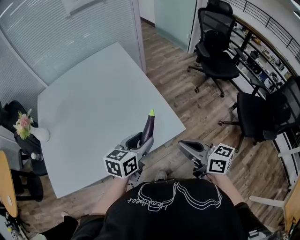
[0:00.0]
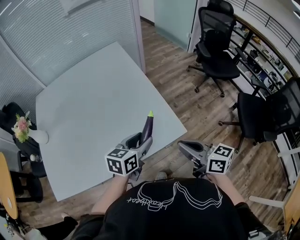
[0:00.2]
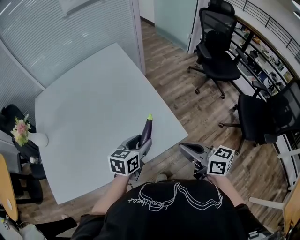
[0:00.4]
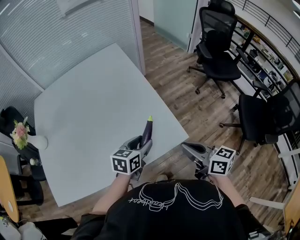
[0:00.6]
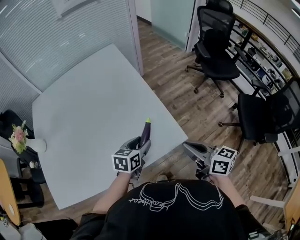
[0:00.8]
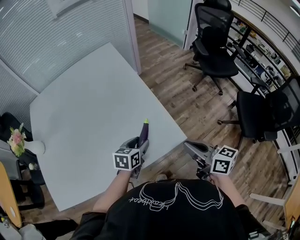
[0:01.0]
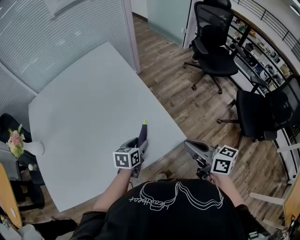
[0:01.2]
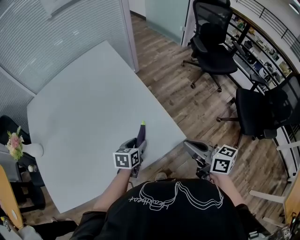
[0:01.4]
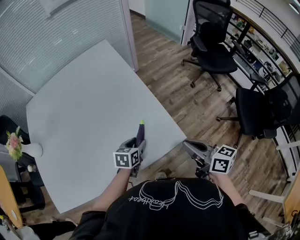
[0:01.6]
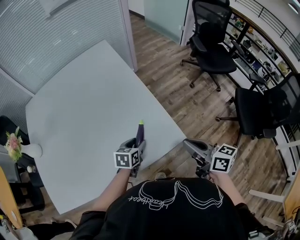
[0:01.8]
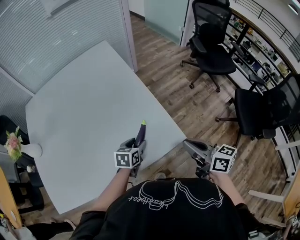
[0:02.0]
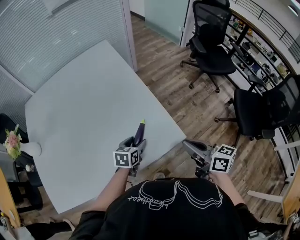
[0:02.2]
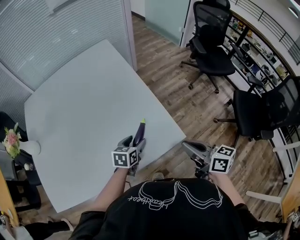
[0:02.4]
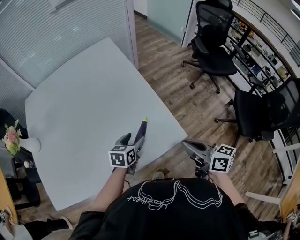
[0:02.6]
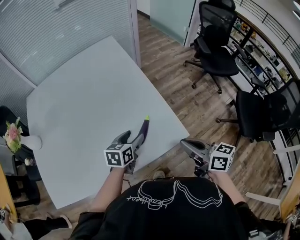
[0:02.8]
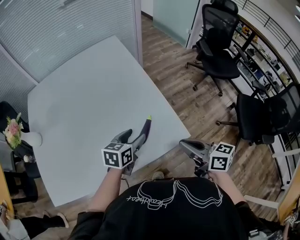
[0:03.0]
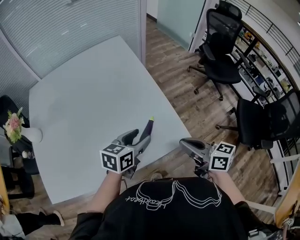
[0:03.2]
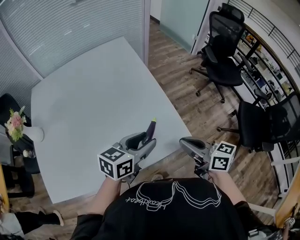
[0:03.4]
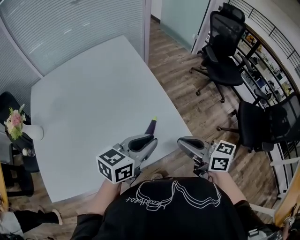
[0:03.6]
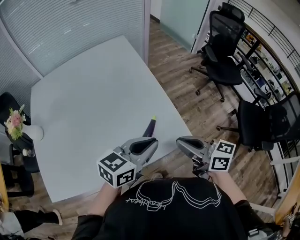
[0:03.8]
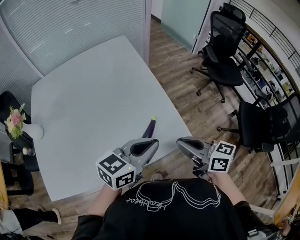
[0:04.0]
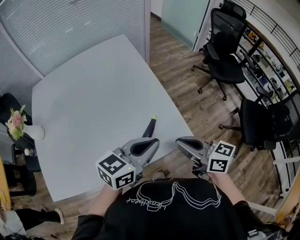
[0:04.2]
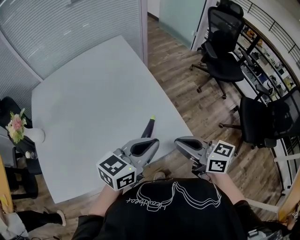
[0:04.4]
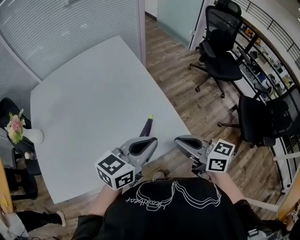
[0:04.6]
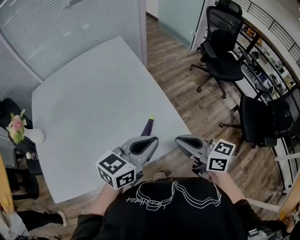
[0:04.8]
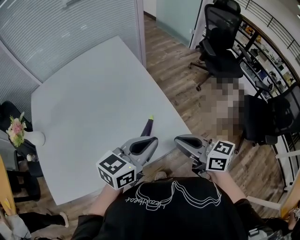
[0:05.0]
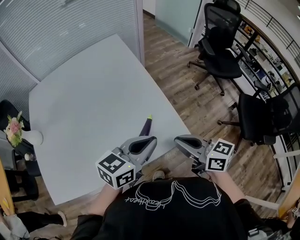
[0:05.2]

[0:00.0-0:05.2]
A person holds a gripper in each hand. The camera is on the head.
0:00.0 to 0:01.8: The left gripper shifts about 20 cm downward and forward, and changes its angle by roughly 20 degrees. Meanwhile the right gripper heads forward, covering roughly 10 cm.
0:01.8 to 0:03.4: The right gripper heads to the left, covering roughly 10 cm, while the left gripper heads upward, covering roughly 20 cm, and rotates approximately 30 degrees.
0:03.4 to 0:05.2: The left gripper changes place by approximately 5 cm, and closes its fingers.

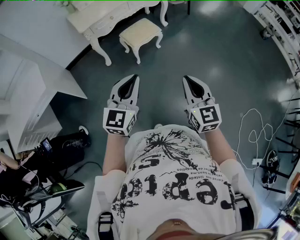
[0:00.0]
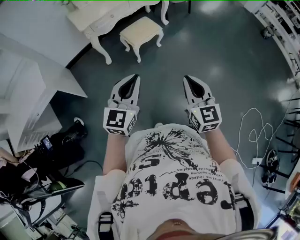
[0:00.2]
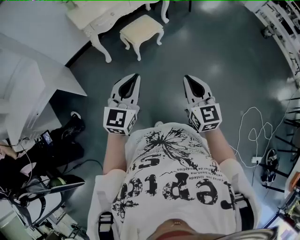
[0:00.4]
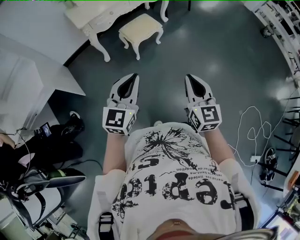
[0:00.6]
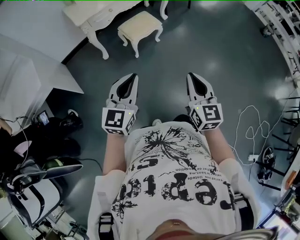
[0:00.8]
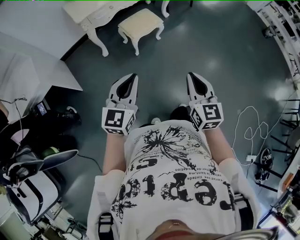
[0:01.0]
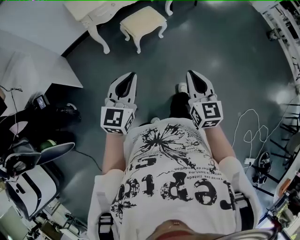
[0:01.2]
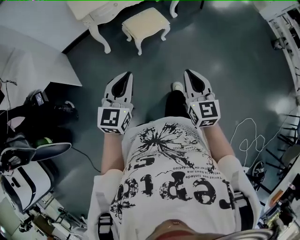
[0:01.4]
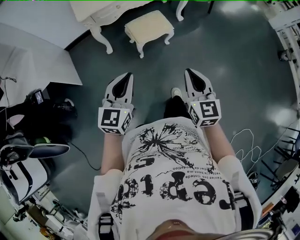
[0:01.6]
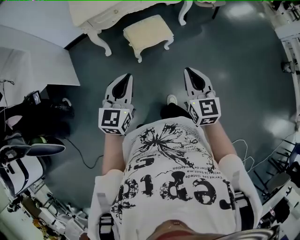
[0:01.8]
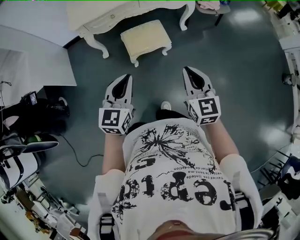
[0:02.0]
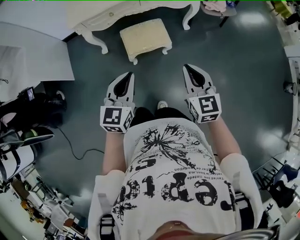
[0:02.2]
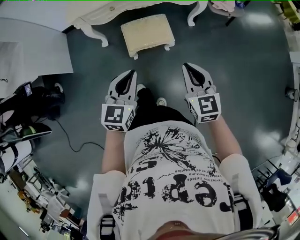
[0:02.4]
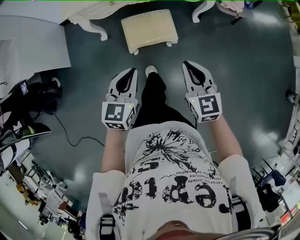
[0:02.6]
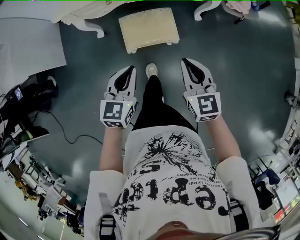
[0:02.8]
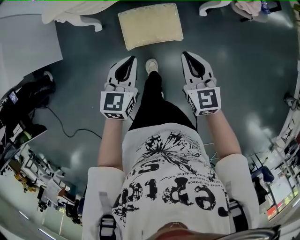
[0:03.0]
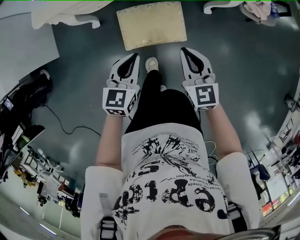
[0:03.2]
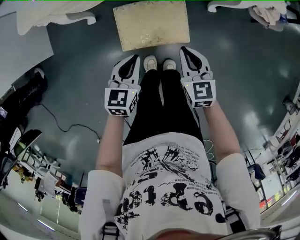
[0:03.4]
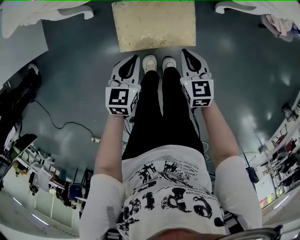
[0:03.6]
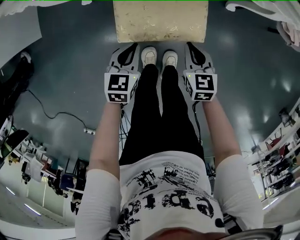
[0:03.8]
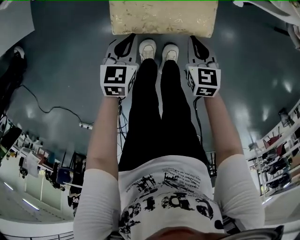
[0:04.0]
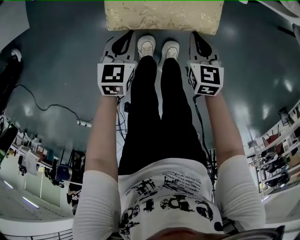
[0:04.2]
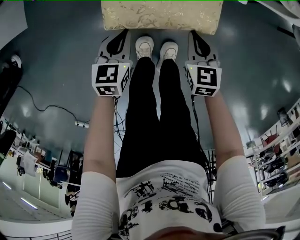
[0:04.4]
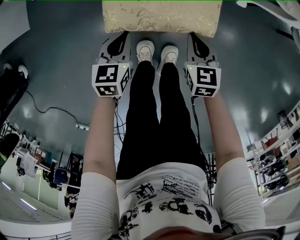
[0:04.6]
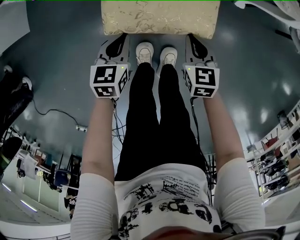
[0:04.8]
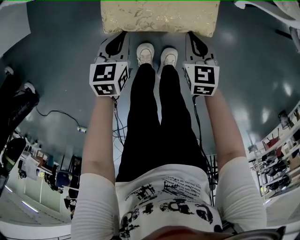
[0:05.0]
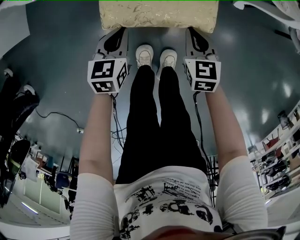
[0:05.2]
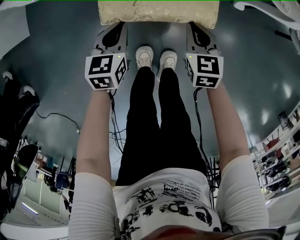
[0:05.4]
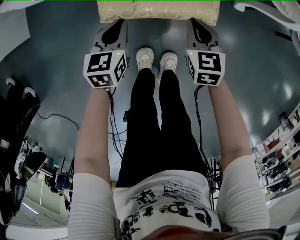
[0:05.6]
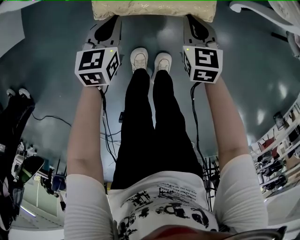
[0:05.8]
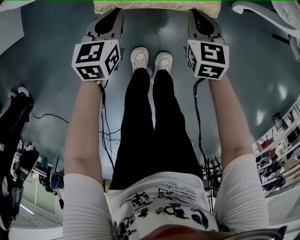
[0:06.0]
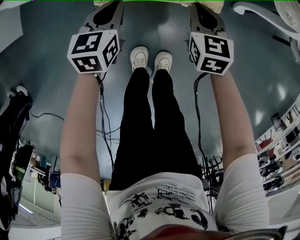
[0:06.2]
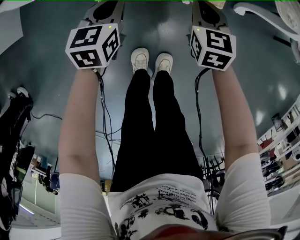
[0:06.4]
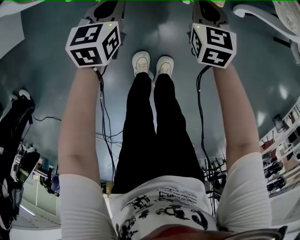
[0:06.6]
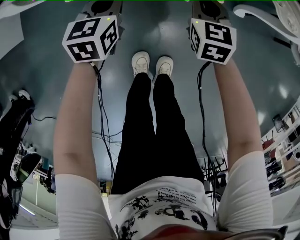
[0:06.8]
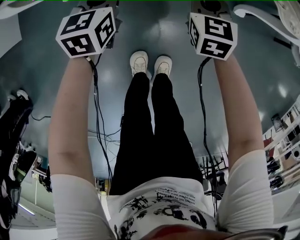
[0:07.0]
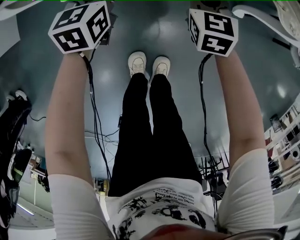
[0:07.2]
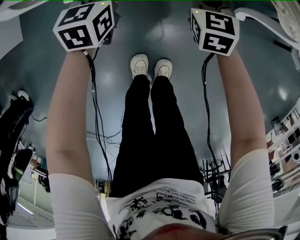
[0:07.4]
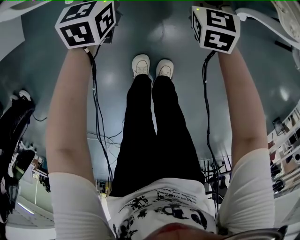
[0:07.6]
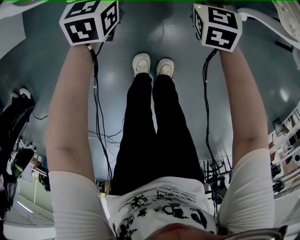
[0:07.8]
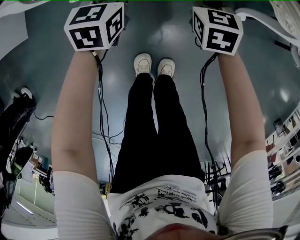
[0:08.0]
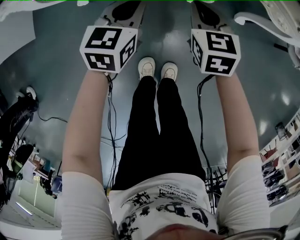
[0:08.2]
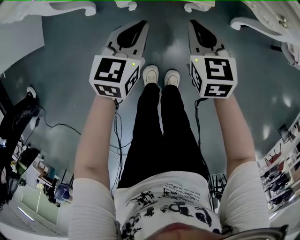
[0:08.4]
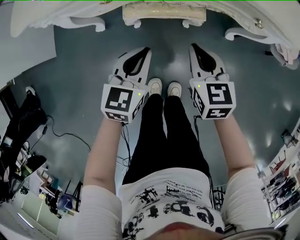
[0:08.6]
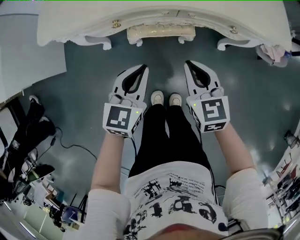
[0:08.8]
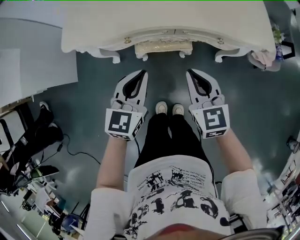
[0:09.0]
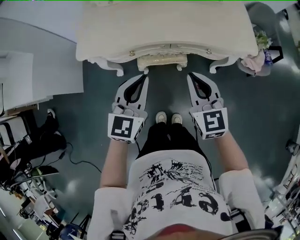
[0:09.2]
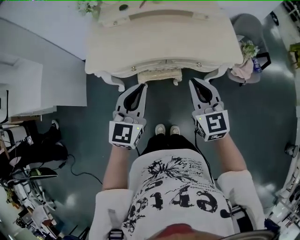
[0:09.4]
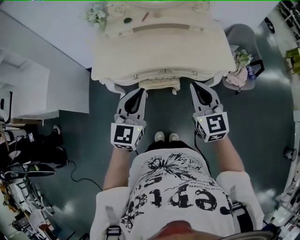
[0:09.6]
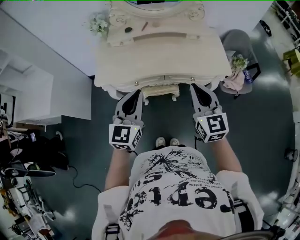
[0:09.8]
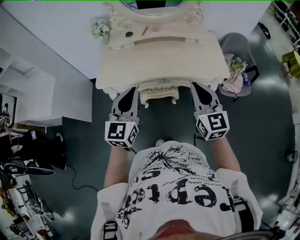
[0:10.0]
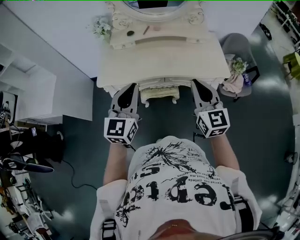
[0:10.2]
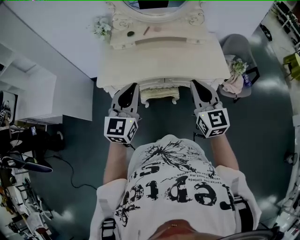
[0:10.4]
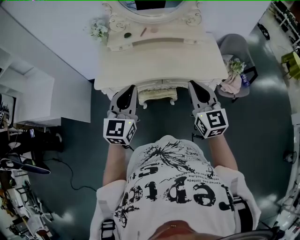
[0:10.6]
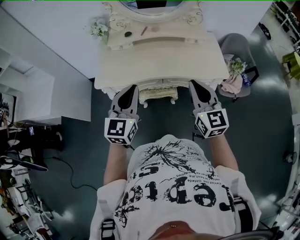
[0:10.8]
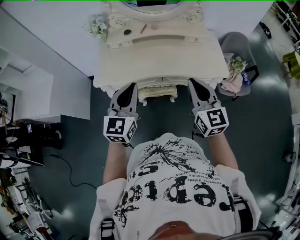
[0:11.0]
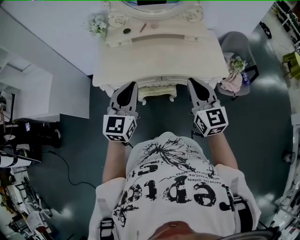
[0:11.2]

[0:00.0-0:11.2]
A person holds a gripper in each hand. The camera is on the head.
0:00.0 to 0:01.6: The left gripper travels forward and downward by some 15 cm, while the right gripper moves forward, about 20 cm.
0:01.6 to 0:03.2: The two grippers travel together, forward, some 50 cm. The two grippers go about 30 cm downward. The right gripper turns by some 30 degrees. The left gripper turns by some 30 degrees.
0:03.2 to 0:04.8: The two grippers go about 30 cm downward. The left gripper rotates approximately 20 degrees.
0:04.8 to 0:06.4: The two grippers go approximately 15 cm forward.
0:06.4 to 0:08.0: The two grippers go some 5 cm forward.
0:08.0 to 0:09.6: The grippers both shift upward by some 60 cm. The right gripper angles its fingers upward, by about 30 degrees; the left gripper turns by roughly 30 degrees.
0:09.6 to 0:11.2: Both grippers travel together upward, some 5 cm.

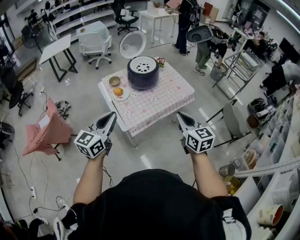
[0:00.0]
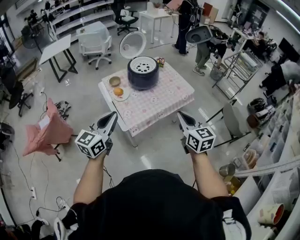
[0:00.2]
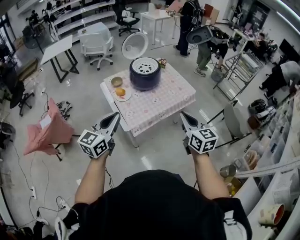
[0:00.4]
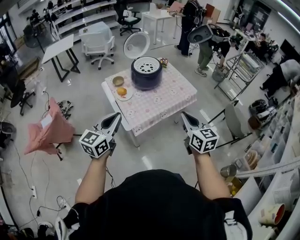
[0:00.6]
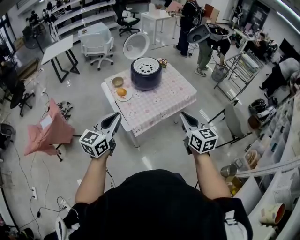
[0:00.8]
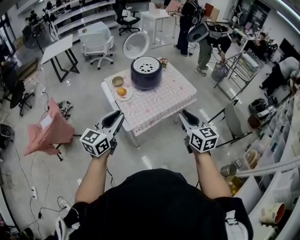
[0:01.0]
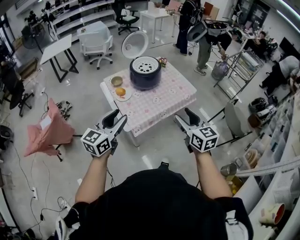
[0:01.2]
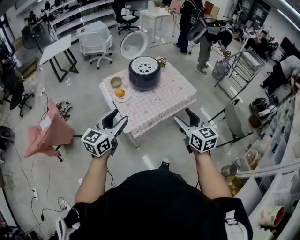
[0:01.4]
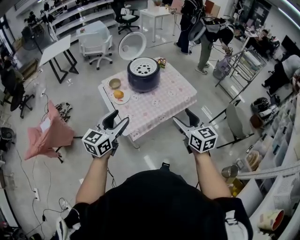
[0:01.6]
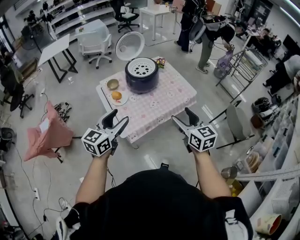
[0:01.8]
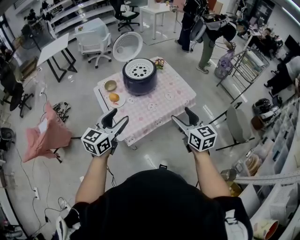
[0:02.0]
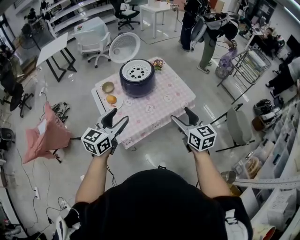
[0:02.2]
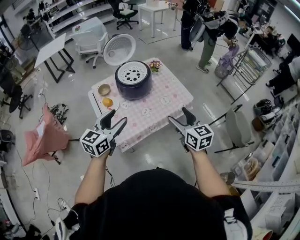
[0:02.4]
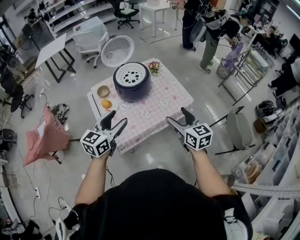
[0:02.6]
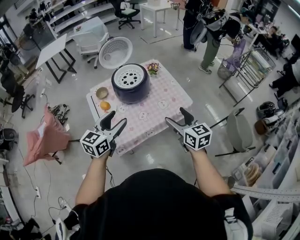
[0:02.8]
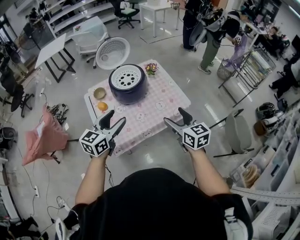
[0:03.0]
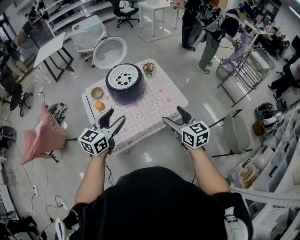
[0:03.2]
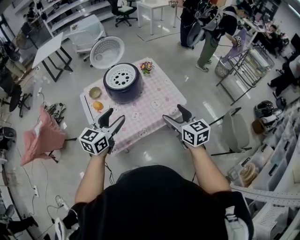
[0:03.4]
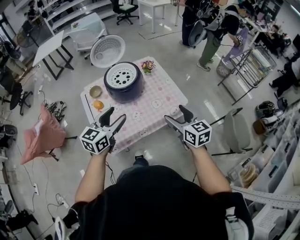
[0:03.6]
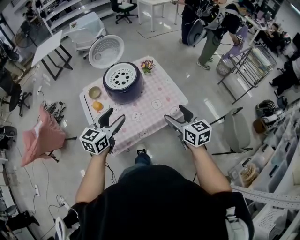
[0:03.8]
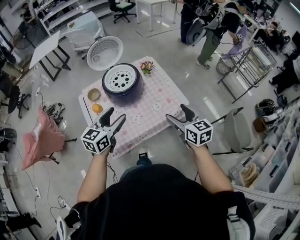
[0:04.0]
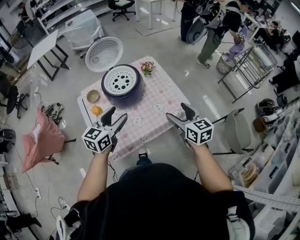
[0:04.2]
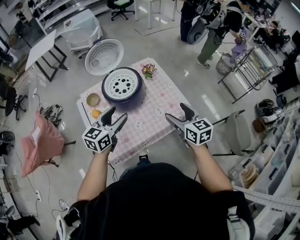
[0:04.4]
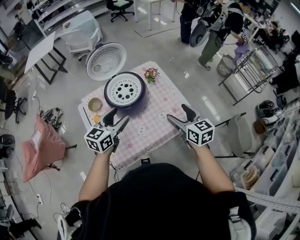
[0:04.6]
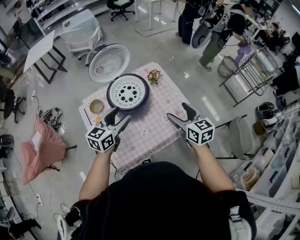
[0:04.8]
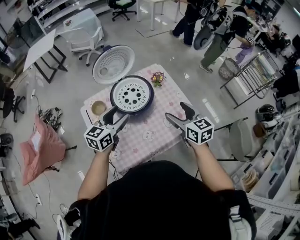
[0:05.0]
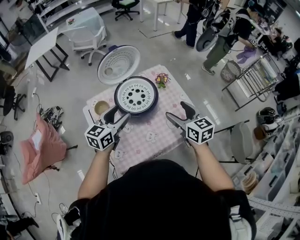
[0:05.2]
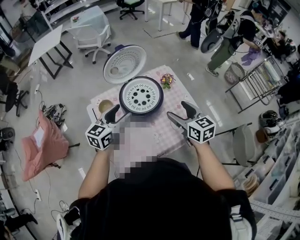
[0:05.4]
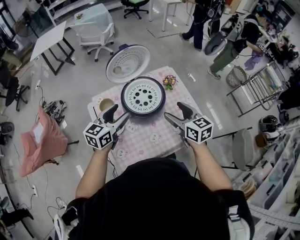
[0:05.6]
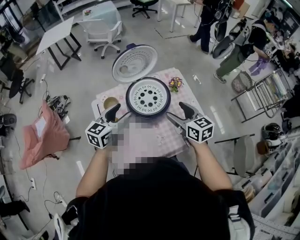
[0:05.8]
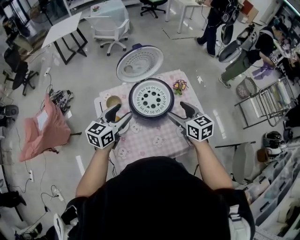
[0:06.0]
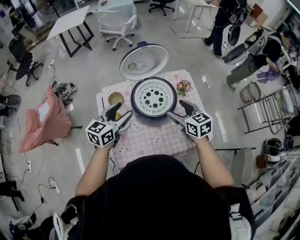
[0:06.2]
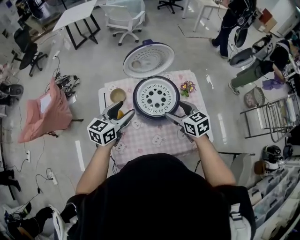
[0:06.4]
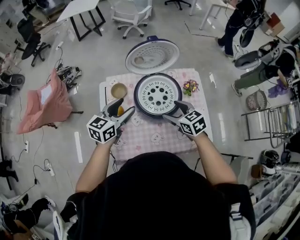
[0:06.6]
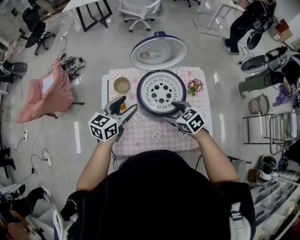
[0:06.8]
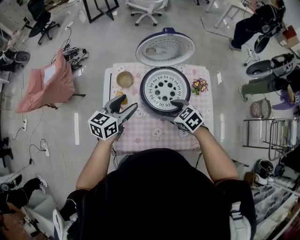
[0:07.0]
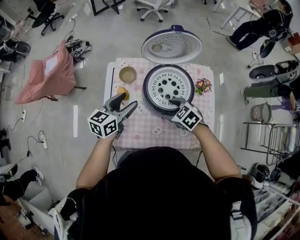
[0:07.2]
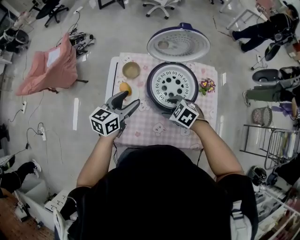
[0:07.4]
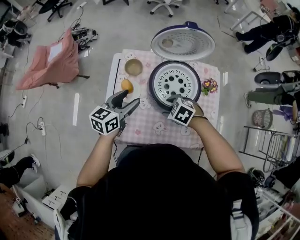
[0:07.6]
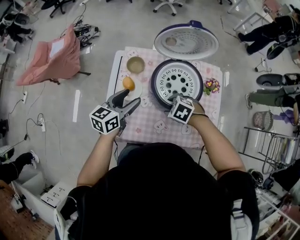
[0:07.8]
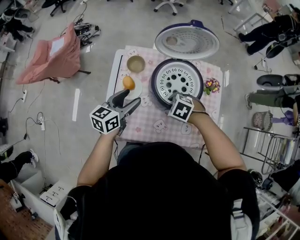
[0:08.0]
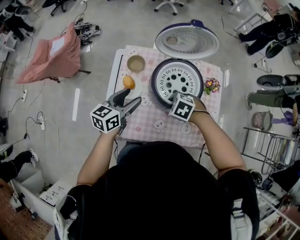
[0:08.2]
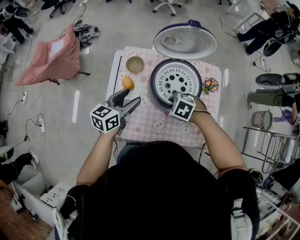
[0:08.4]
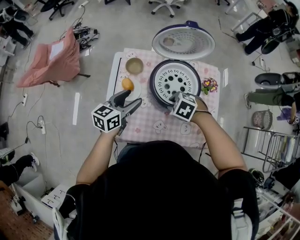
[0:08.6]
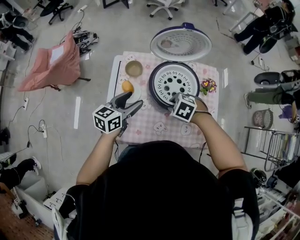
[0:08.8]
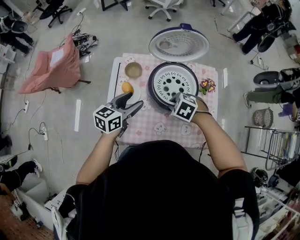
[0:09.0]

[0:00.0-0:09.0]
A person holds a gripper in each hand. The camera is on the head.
0:00.0 to 0:01.6: The left gripper moves approximately 5 cm, and opens, while the right gripper opens.
0:01.6 to 0:03.0: Both grippers travel together forward and to the right, approximately 25 cm.
0:03.0 to 0:04.4: Both grippers move forward, approximately 15 cm.
0:04.4 to 0:06.0: The right gripper is displaced forward and to the left by about 25 cm. The left gripper is displaced to the left and forward by about 20 cm.
0:06.0 to 0:07.6: The right gripper moves downward, about 15 cm, and points its fingers roughly 40 degrees further downward, while the left gripper travels downward by some 10 cm, and changes its angle by roughly 30 degrees.
0:07.6 to 0:09.0: The right gripper closes up.
